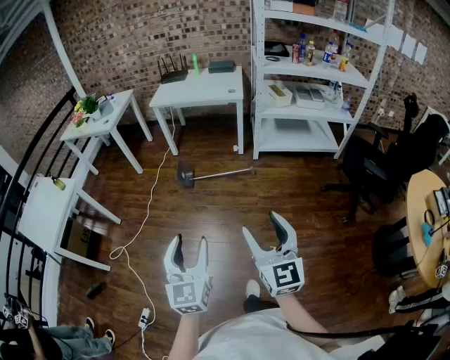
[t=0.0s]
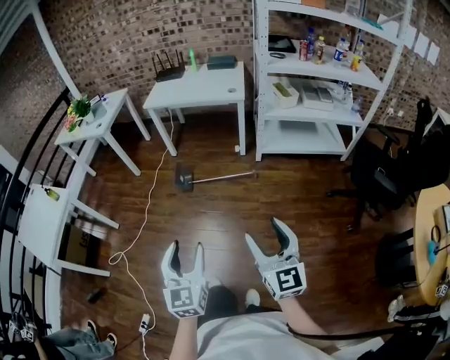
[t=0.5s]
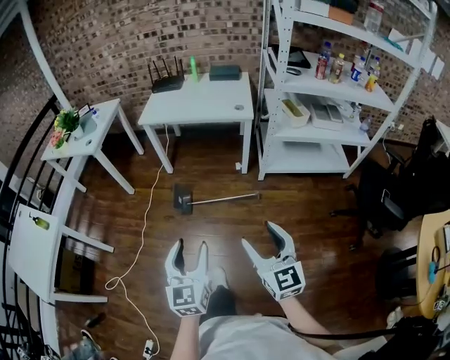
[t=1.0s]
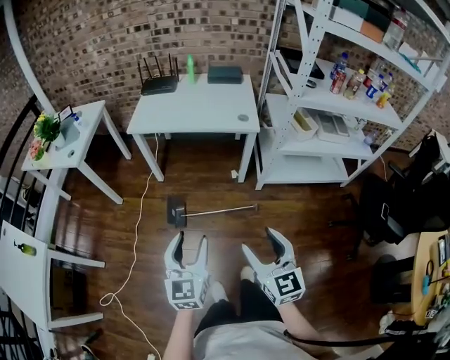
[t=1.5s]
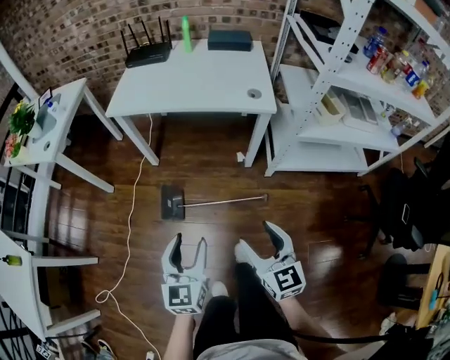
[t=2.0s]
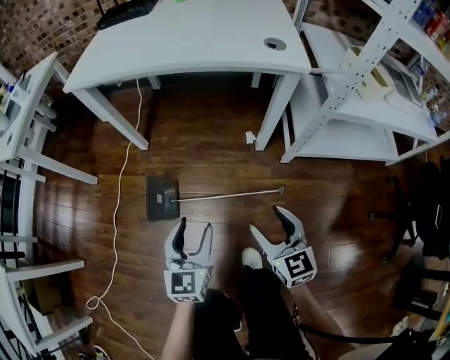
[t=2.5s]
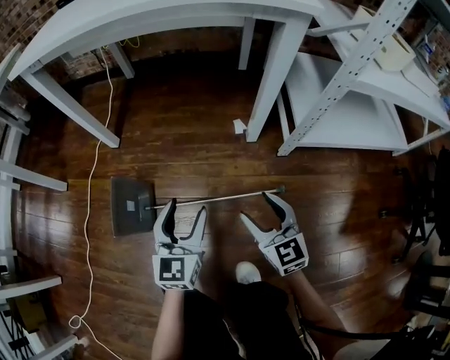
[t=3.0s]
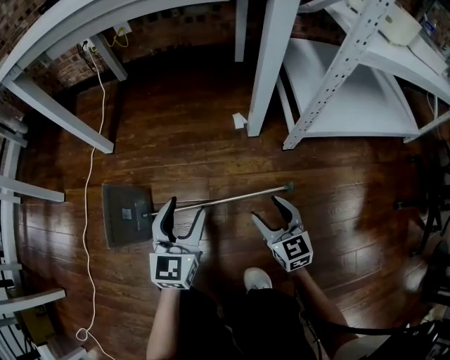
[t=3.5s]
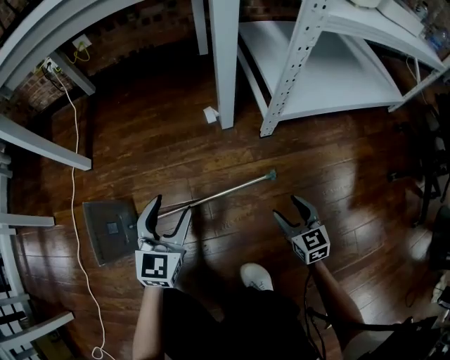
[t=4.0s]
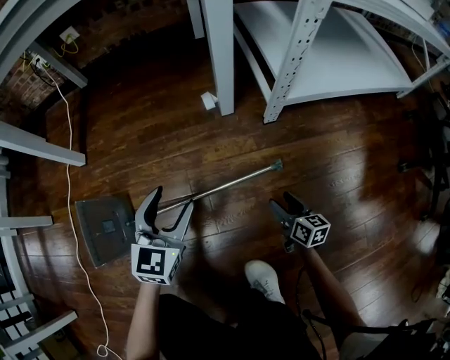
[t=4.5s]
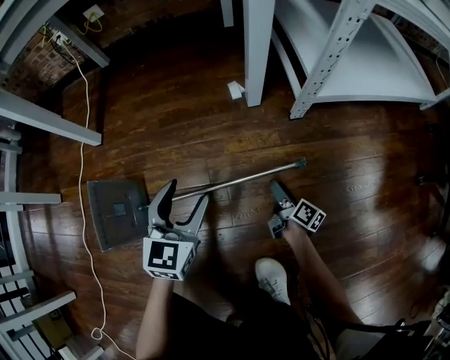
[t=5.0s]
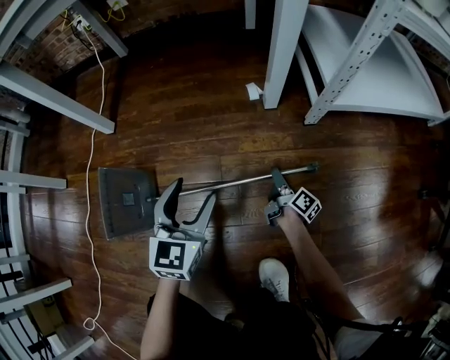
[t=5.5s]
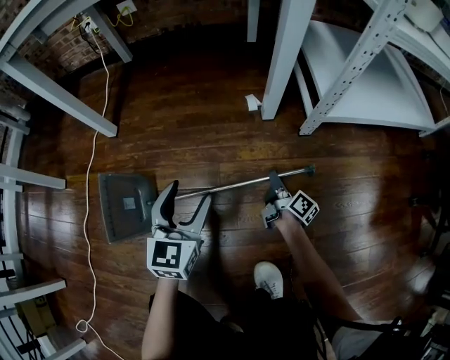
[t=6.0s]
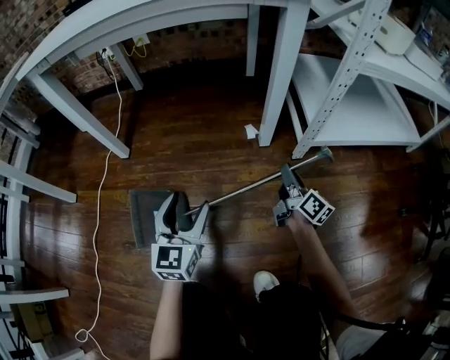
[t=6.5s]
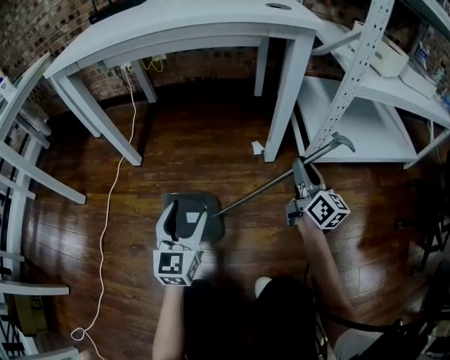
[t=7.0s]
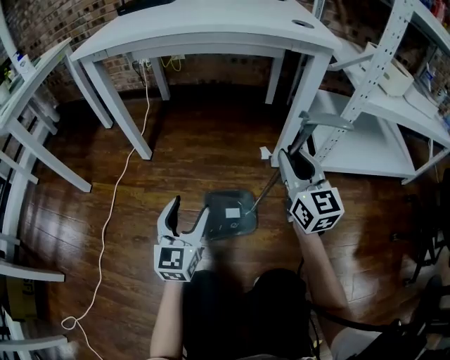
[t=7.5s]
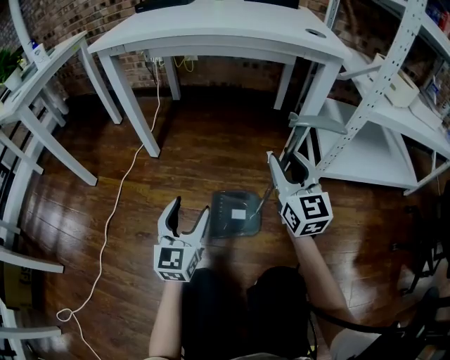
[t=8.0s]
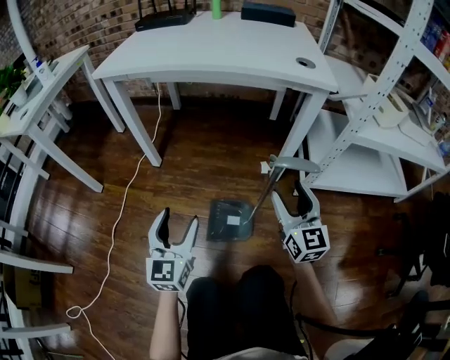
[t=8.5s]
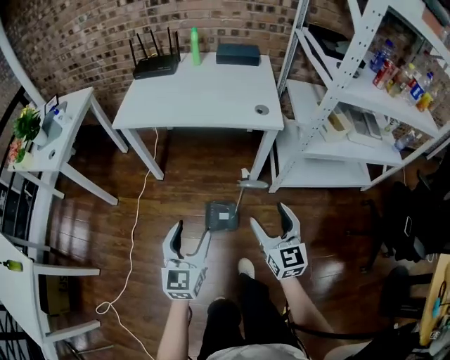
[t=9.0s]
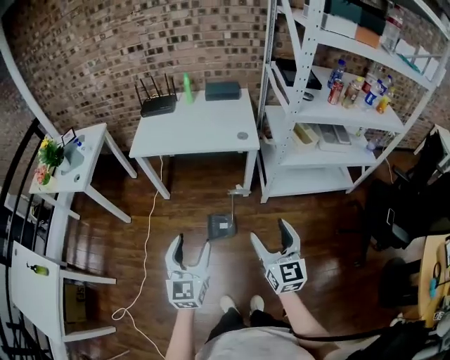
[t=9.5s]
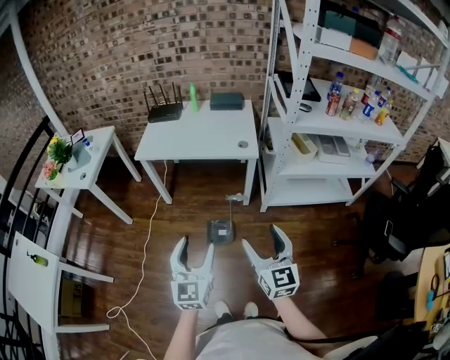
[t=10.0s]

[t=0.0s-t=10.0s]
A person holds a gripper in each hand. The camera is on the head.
t=0.0s to t=2.0s: The two grippers travel together, forward, approximately 60 cm. The right gripper heads downward, covering approximately 25 cm.
t=2.0s to t=4.0s: The right gripper travels downward by some 60 cm, and turns by about 20 degrees; the left gripper shifts some 60 cm downward and forward, and rotates roughly 30 degrees.
t=4.0s to t=6.0s: The right gripper goes roughly 20 cm forward, to the left and downward, twists some 70 degrees clockwise, seen from behind, and closes.
t=6.0s to t=8.0s: The right gripper heads upward, covering some 40 cm, and twists roughly 80 degrees counterclockwise, seen from behind; the left gripper moves upward, to the left and backward, approximately 20 cm.
t=8.0s to t=10.0s: The right gripper travels upward and backward by some 60 cm, and opens up; the left gripper goes roughly 60 cm upward.

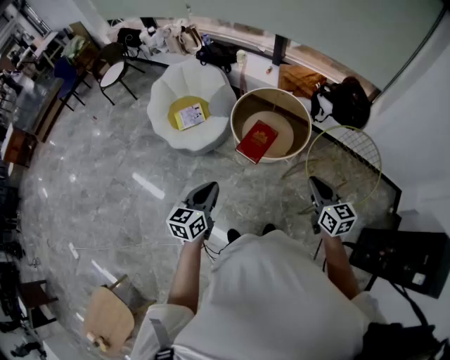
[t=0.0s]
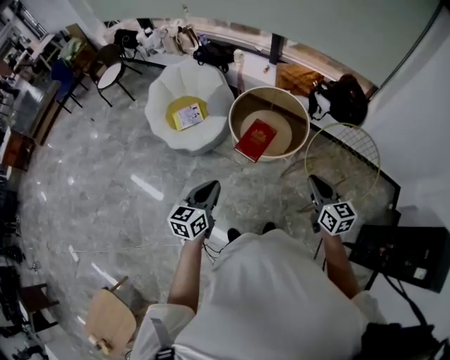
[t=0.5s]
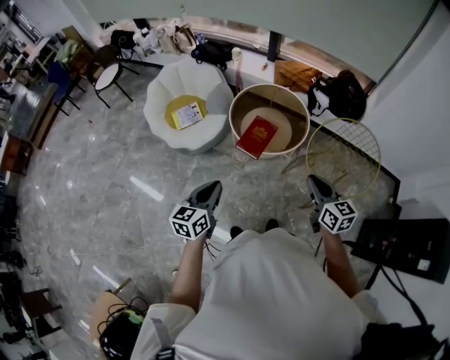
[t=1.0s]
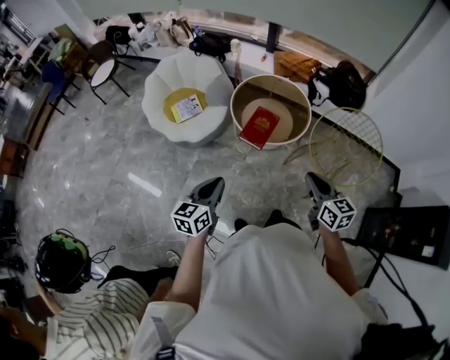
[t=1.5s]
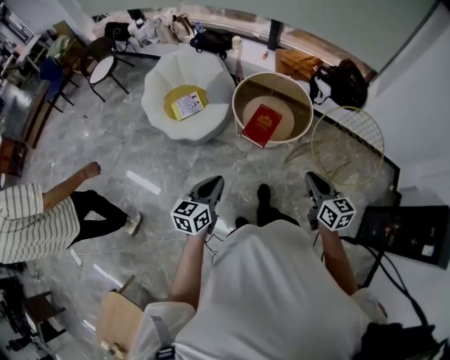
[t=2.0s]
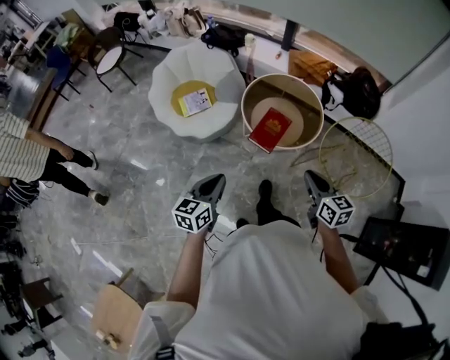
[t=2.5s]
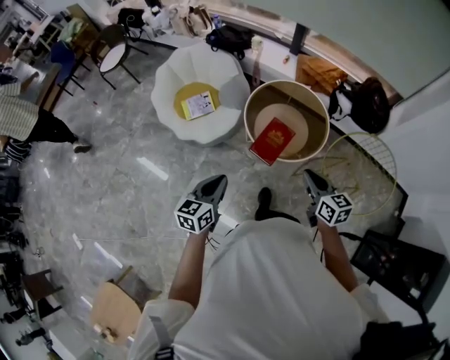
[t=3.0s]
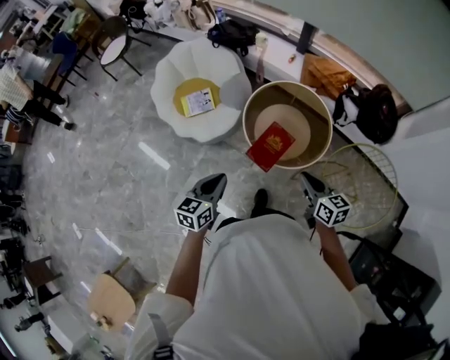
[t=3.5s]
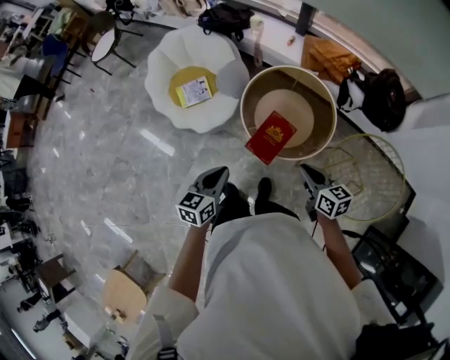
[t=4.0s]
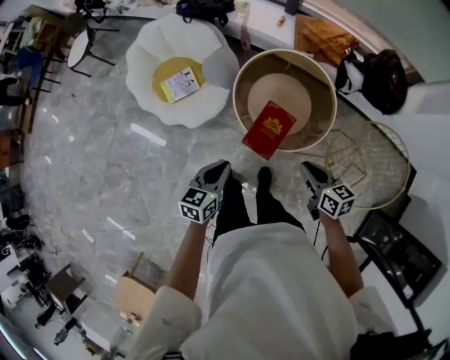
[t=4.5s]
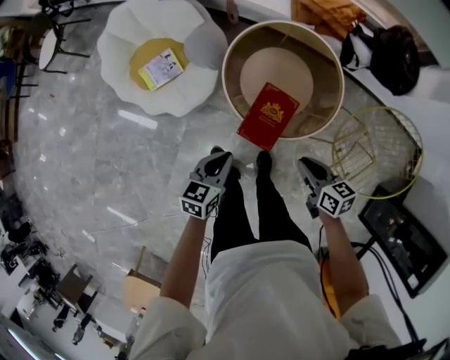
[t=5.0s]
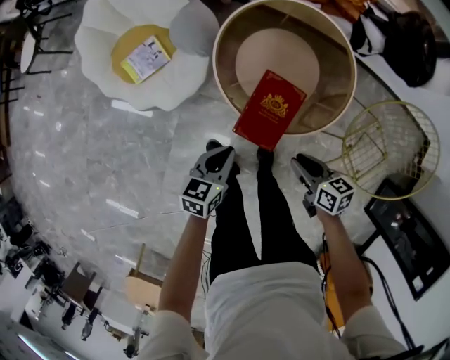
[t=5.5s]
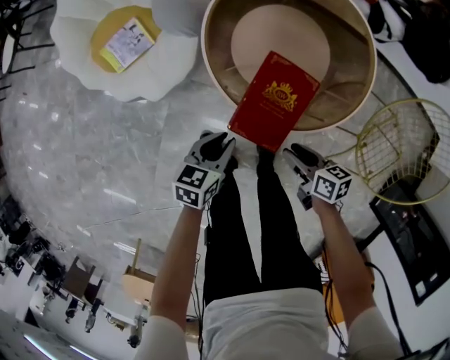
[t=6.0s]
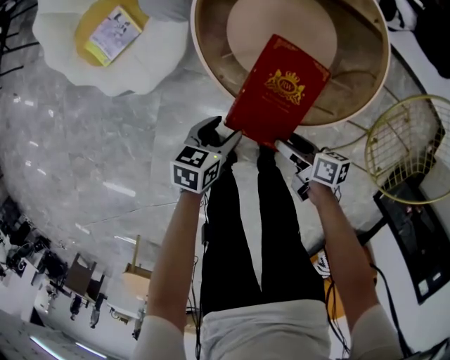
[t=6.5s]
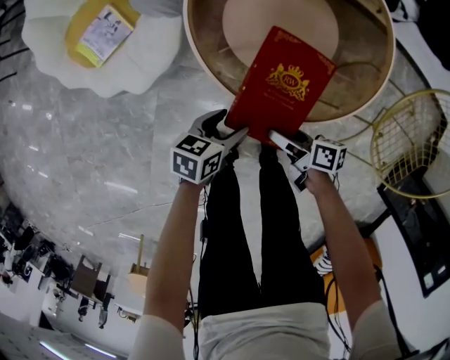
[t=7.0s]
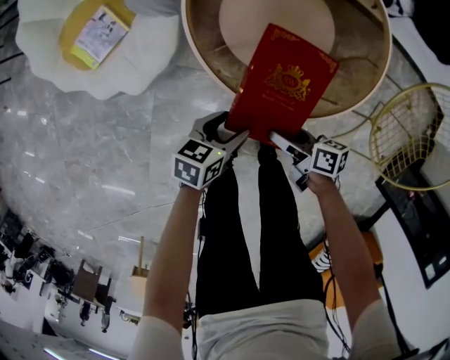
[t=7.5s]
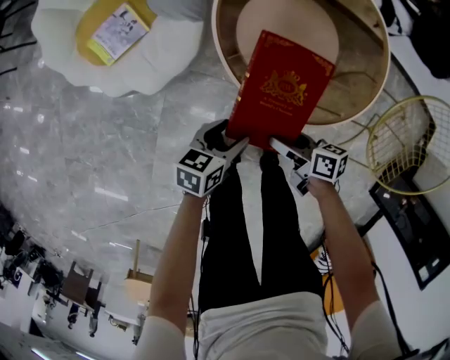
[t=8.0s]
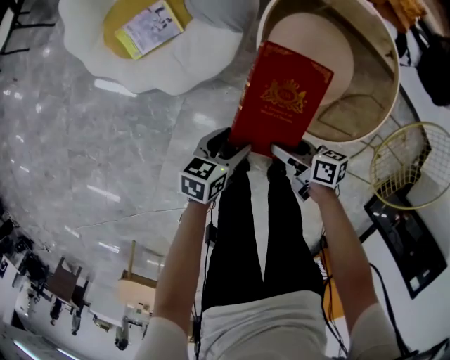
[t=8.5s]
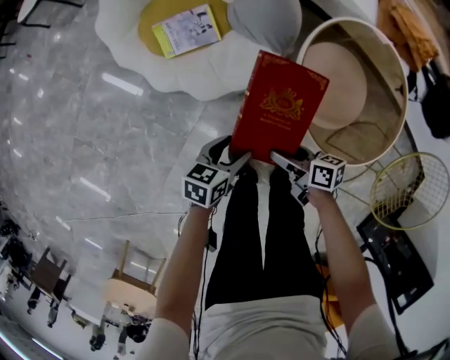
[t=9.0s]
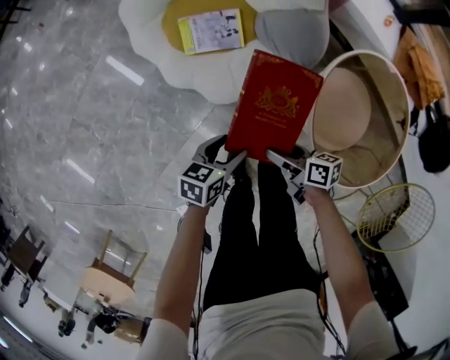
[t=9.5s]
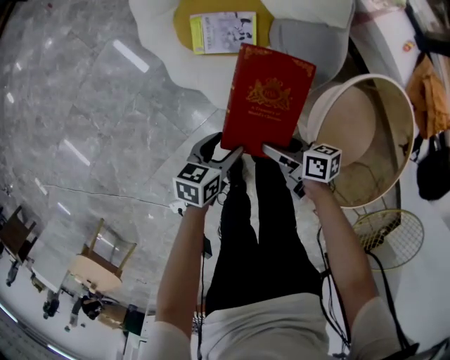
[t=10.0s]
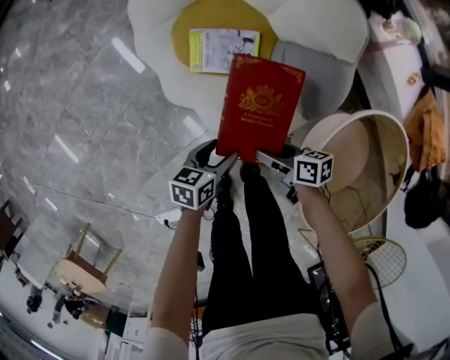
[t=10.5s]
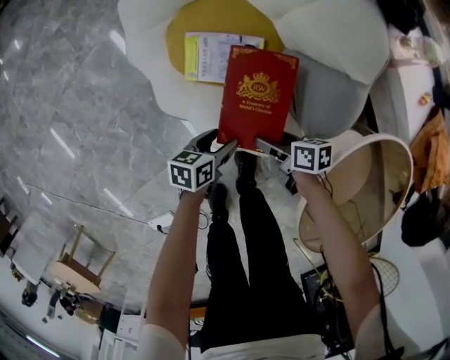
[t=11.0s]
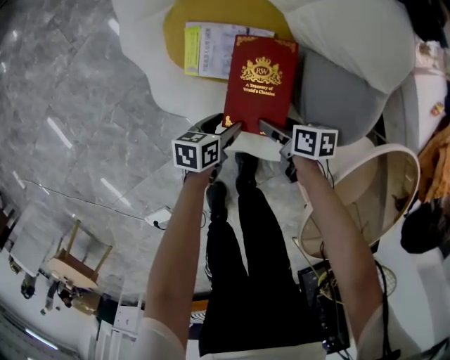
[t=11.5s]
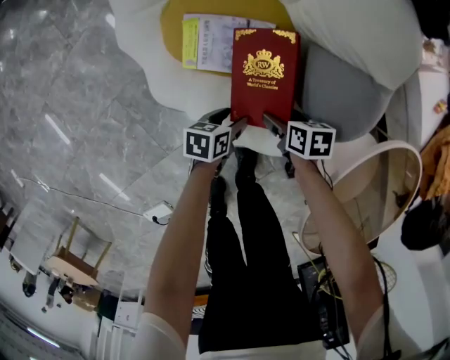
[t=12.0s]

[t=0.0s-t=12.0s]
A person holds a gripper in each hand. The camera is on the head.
t=0.0s to t=2.0s: The right gripper shifts roughly 10 cm to the left and backward. Meanwhile the left gripper is displaced to the left by approximately 5 cm.
t=2.0s to t=4.0s: Both grippers travel together forward, roughly 25 cm. The right gripper swivels approximately 20 degrees.
t=4.0s to t=6.0s: Both grippers travel together downward, approximately 40 cm. The right gripper swivels roughly 30 degrees, and opens up. Meanwhile the left gripper turns by some 30 degrees.
t=6.0s to t=8.0s: The right gripper shifts by some 10 cm, and opens its fingers, while the left gripper opens.
t=8.0s to t=10.0s: The left gripper ends up roughly 30 cm from where it was, and turns by roughly 30 degrees, while the right gripper shifts by some 35 cm, and rotates about 30 degrees.
t=10.0s to t=12.0s: The grippers both shift downward by about 25 cm. The right gripper points its fingers some 30 degrees further downward.

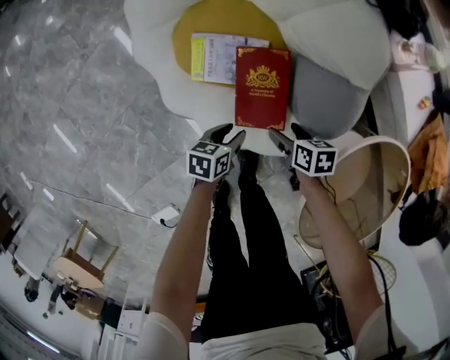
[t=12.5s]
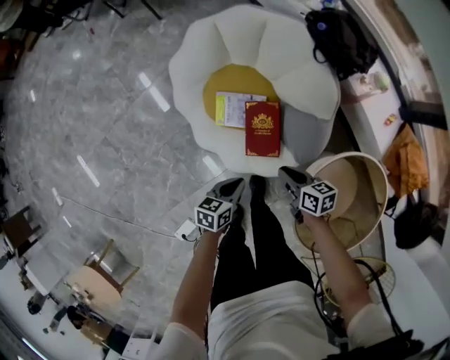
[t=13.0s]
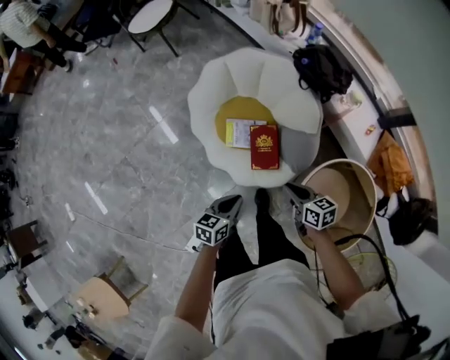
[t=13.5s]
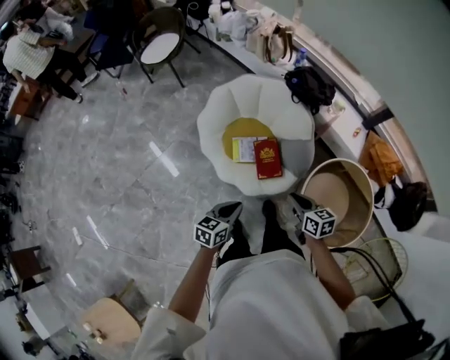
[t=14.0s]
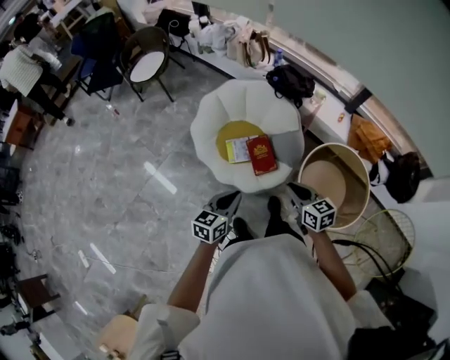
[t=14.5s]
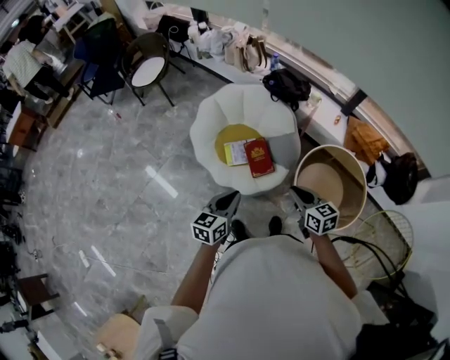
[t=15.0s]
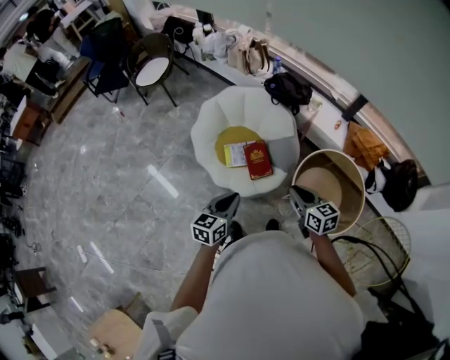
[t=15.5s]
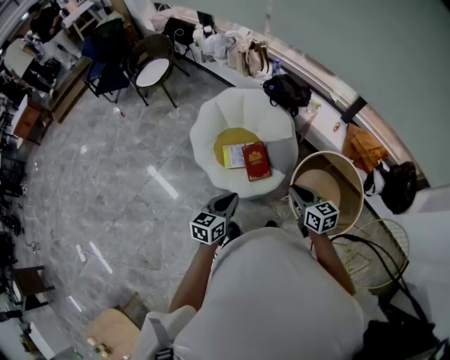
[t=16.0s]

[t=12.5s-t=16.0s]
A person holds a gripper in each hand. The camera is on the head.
t=12.5s to t=14.5s: Both grippers move upward, approximately 60 cm. The right gripper changes its angle by some 40 degrees, and closes. The left gripper turns by about 40 degrees, and closes up.
t=14.5s to t=16.0s: Both grippers travel together to the right, roughly 5 cm.

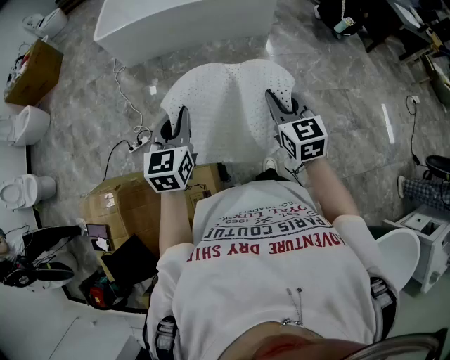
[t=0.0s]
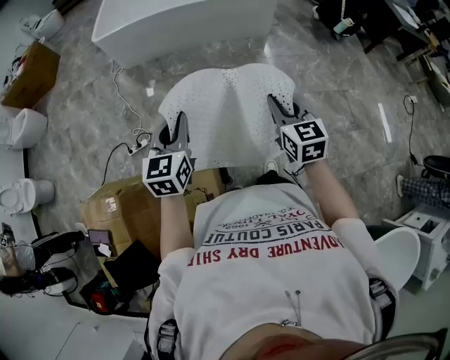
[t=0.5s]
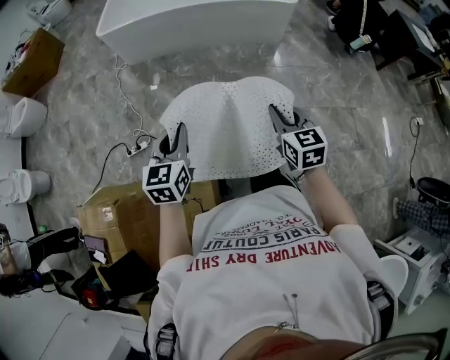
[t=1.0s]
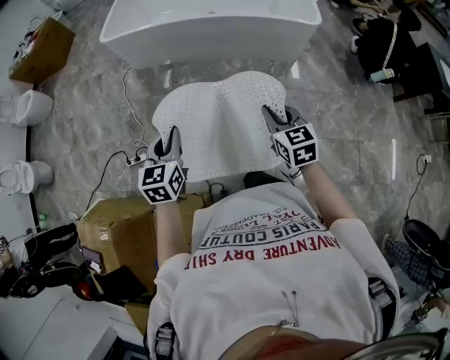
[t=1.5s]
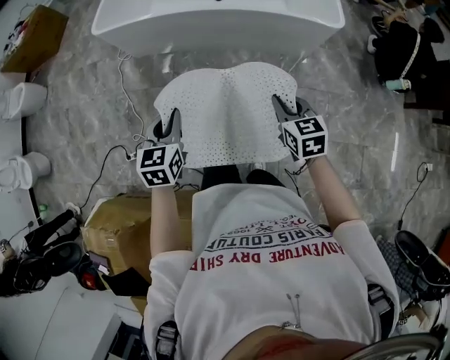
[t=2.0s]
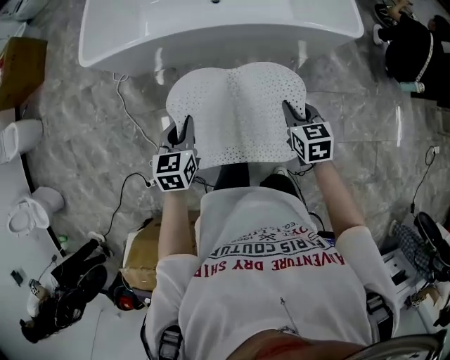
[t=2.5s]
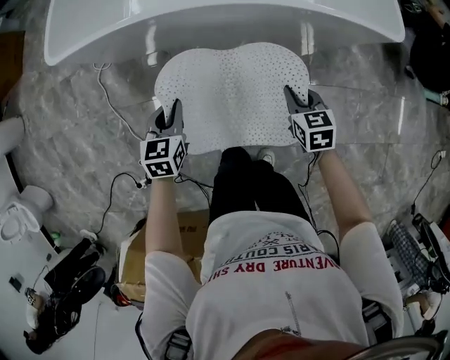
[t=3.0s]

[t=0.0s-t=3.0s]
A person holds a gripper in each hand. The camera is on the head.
t=0.0s to t=1.5s: Both grippers move forward, about 30 cm.
t=1.5s to t=3.0s: The two grippers travel together, forward, some 40 cm. The grippers both shift downward by some 30 cm. The right gripper changes its angle by about 20 degrees.
